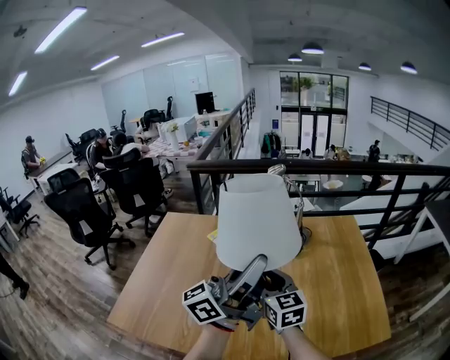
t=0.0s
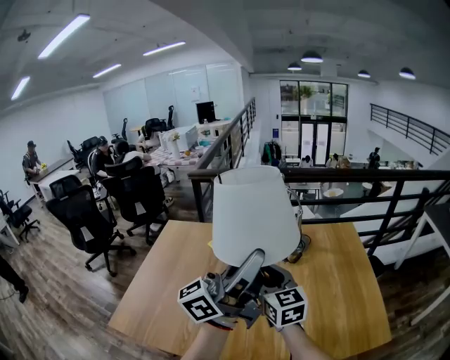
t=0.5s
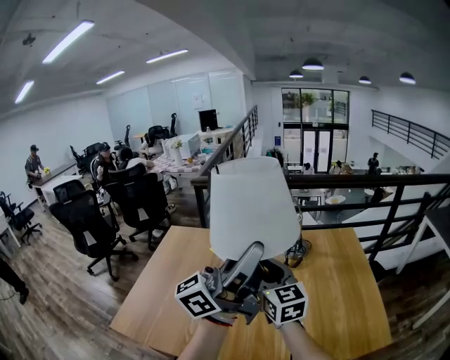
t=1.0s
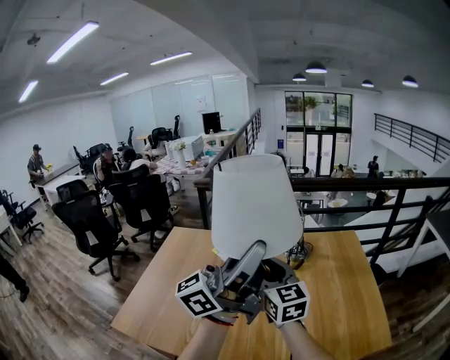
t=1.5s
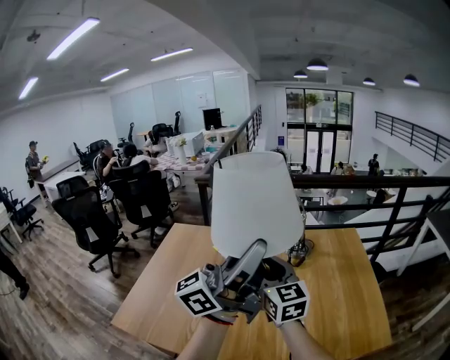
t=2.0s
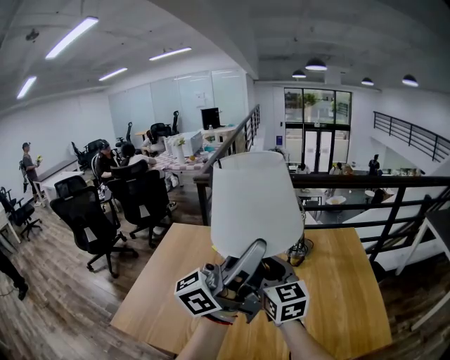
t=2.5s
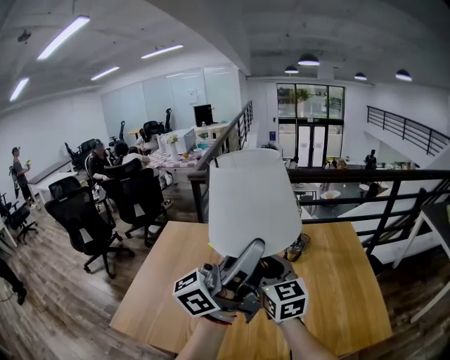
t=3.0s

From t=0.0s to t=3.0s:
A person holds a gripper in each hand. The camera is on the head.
From t=0.0s to t=1.5s: Both grippers travel together upward, roughly 10 cm.
From t=1.5s to t=3.0s: Neither gripper changes place.

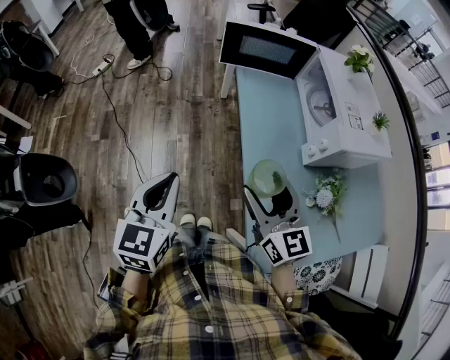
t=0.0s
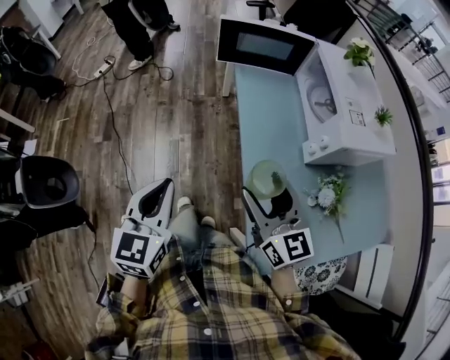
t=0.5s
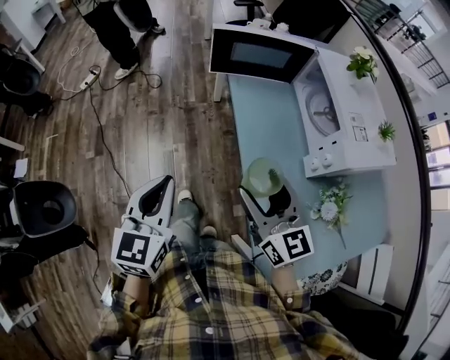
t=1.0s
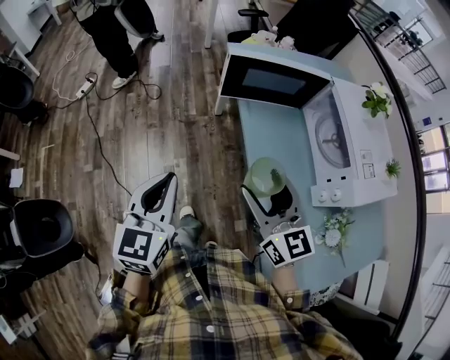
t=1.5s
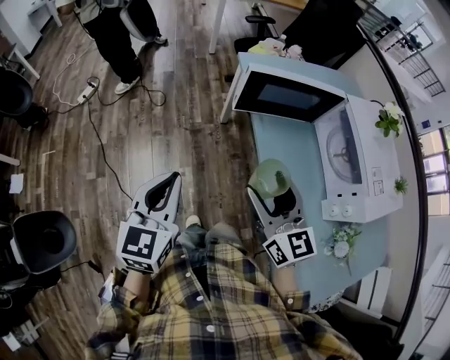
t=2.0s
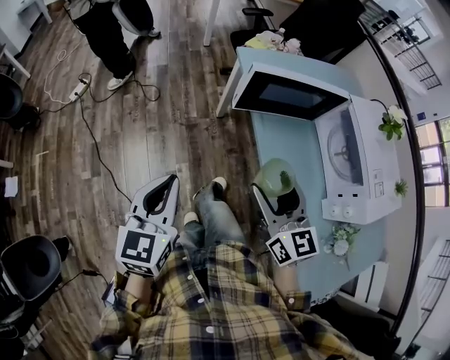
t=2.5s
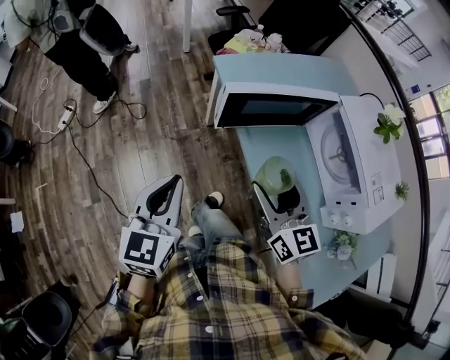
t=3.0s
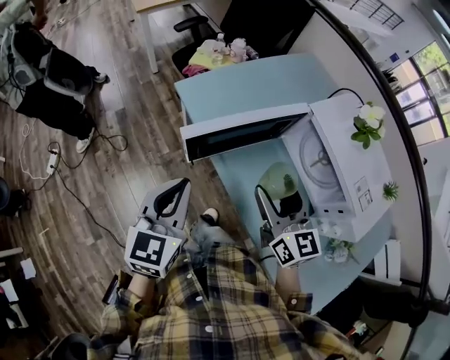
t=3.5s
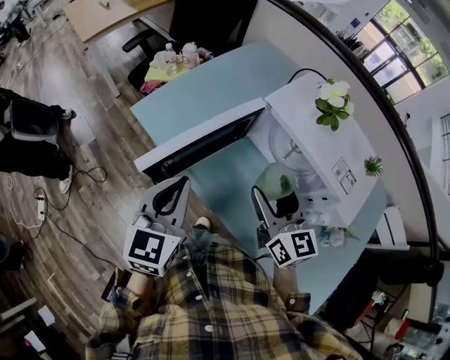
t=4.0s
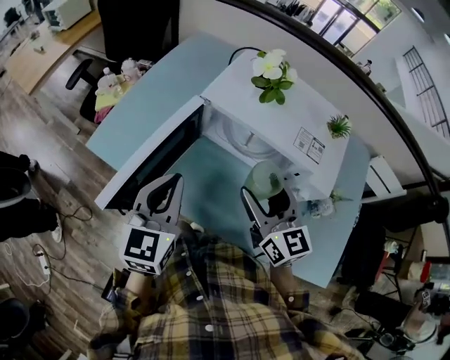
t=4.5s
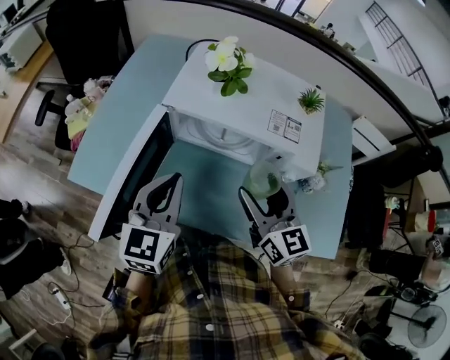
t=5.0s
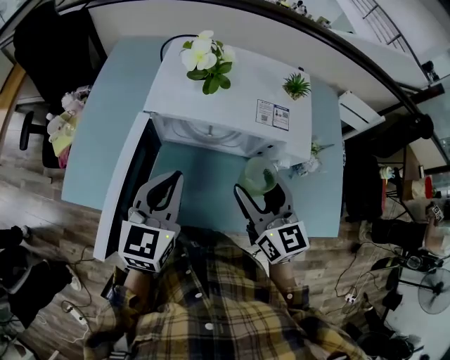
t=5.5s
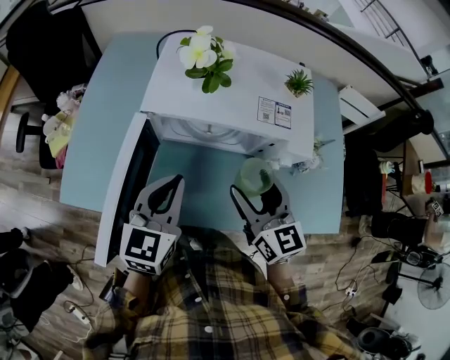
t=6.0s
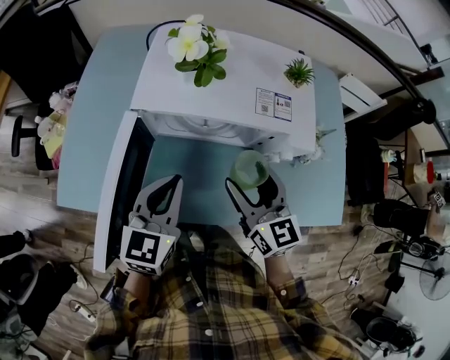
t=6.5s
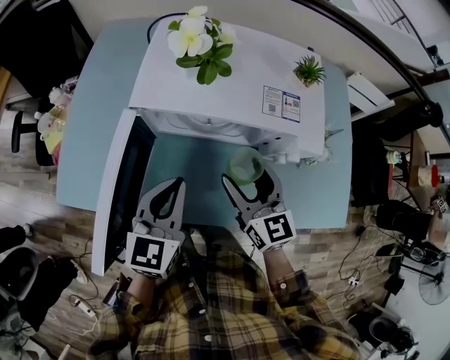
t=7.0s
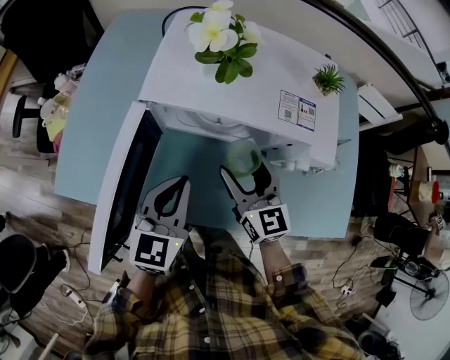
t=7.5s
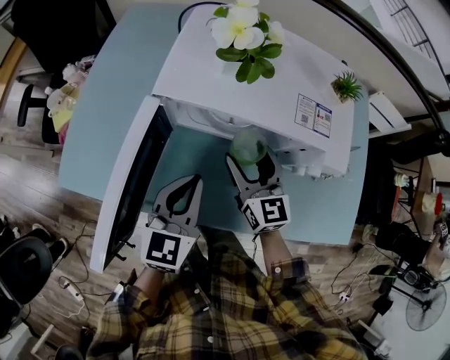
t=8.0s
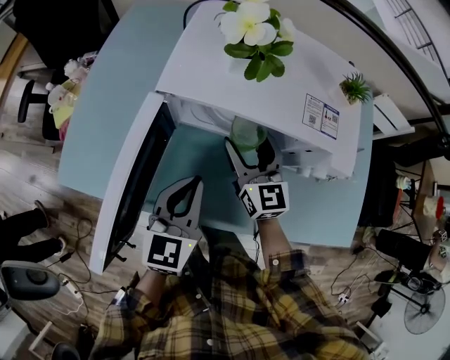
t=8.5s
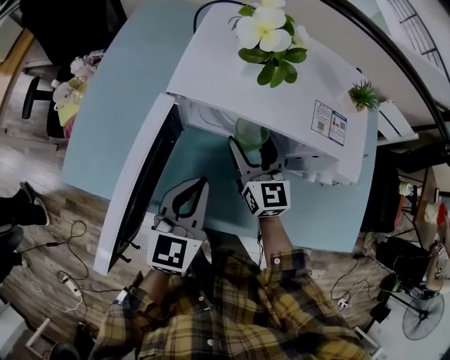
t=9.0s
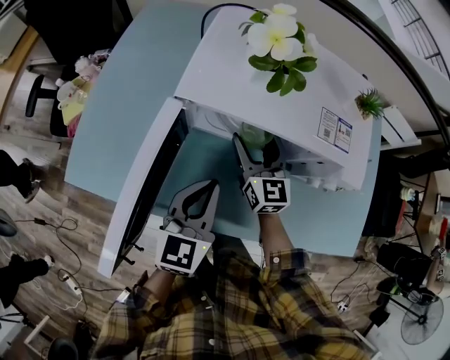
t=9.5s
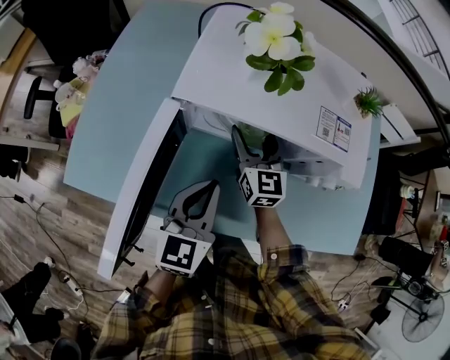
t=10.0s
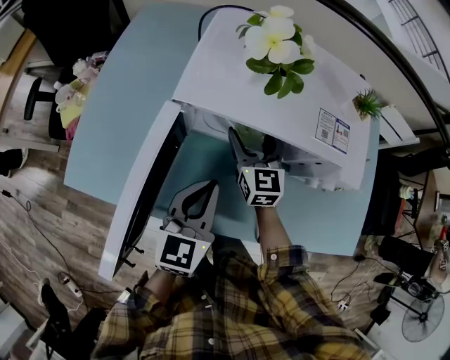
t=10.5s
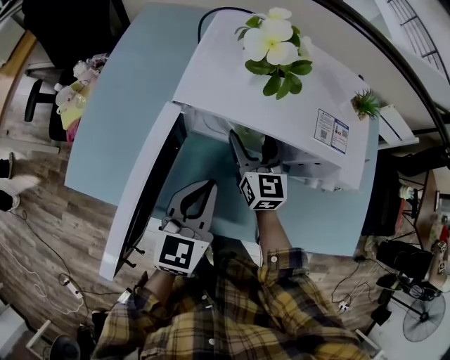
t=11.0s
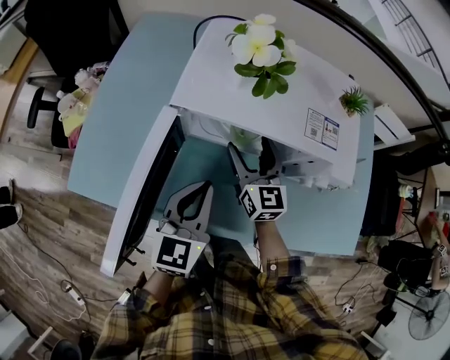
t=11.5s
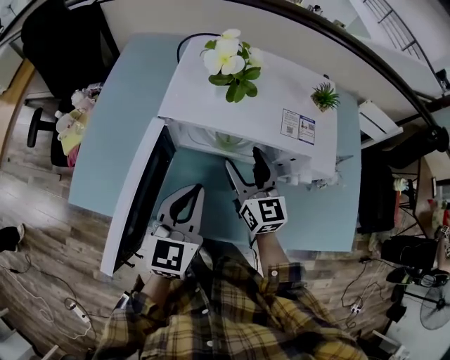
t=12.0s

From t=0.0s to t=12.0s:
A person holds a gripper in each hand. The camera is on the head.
From t=0.0s to t=2.0s: The left gripper goes some 25 cm forward, while the right gripper travels forward and to the left by approximately 25 cm.
From t=2.0s to t=4.0s: The right gripper ends up some 25 cm from where it was, and swivels some 40 degrees, while the left gripper shifts by roughly 35 cm, and rotates about 40 degrees.
From t=4.0s to t=6.0s: The right gripper changes place by approximately 10 cm, and swivels about 30 degrees; the left gripper changes place by roughly 20 cm, and swivels about 40 degrees.
From t=6.0s to t=8.0s: The left gripper shifts roughly 5 cm downward, while the right gripper is displaced downward and forward by roughly 15 cm.
From t=8.0s to t=10.0s: The right gripper moves forward, approximately 10 cm.
From t=10.0s to t=12.0s: The right gripper shifts some 10 cm backward and upward.

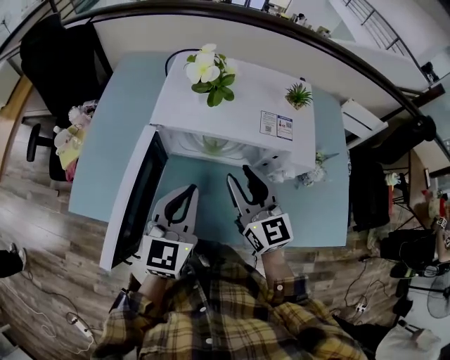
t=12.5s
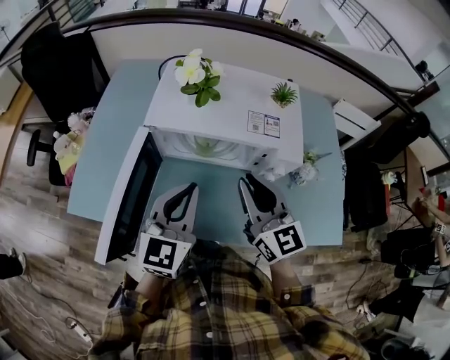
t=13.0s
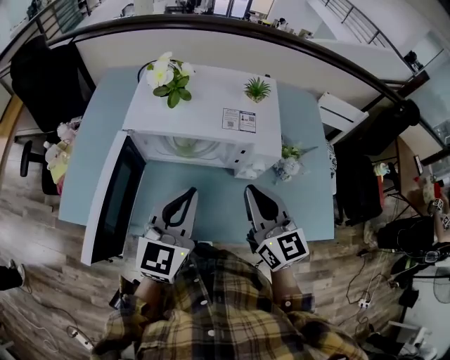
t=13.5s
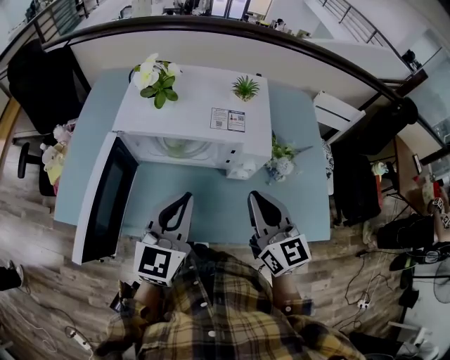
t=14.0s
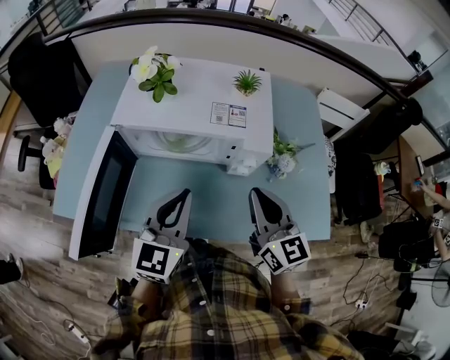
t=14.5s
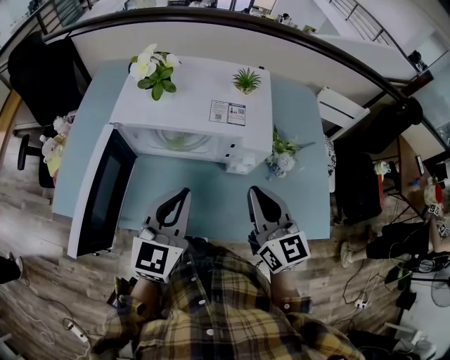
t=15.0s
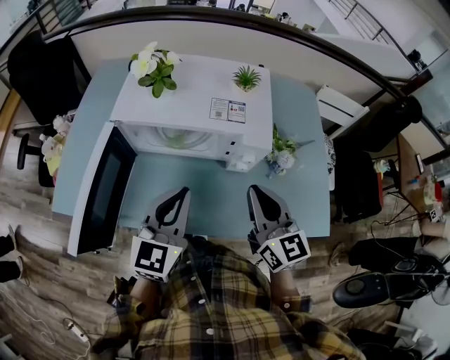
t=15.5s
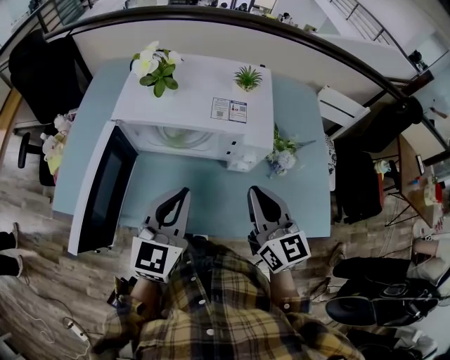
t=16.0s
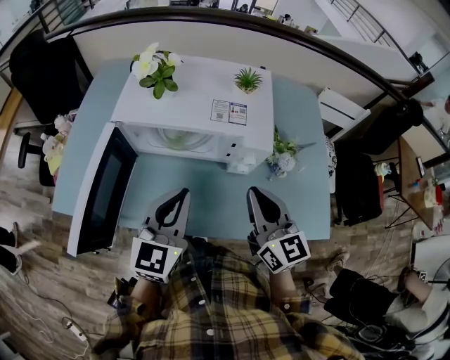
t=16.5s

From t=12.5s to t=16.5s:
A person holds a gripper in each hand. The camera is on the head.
From t=12.5s to t=14.5s: The left gripper is displaced to the right by some 10 cm, while the right gripper shifts about 15 cm to the right and backward, and closes up.
From t=14.5s to t=16.5s: Both grippers stay about where they are.

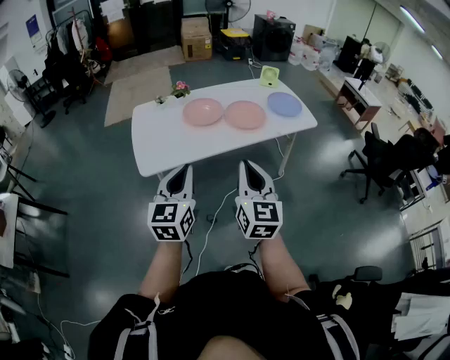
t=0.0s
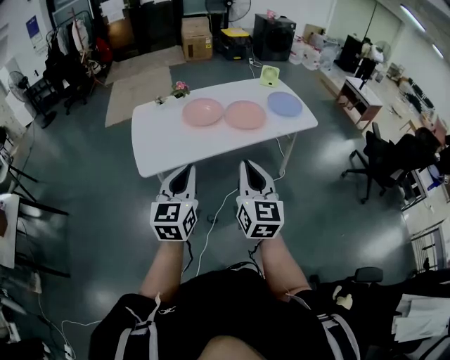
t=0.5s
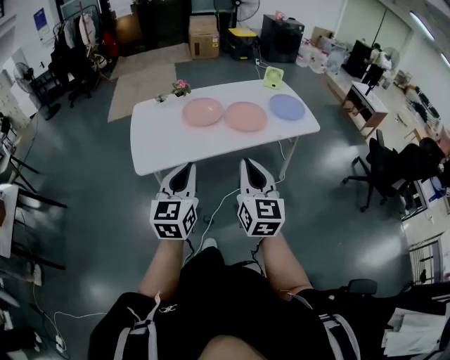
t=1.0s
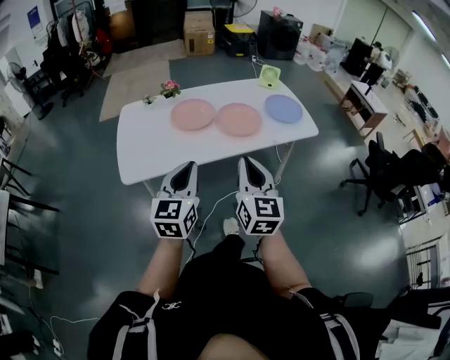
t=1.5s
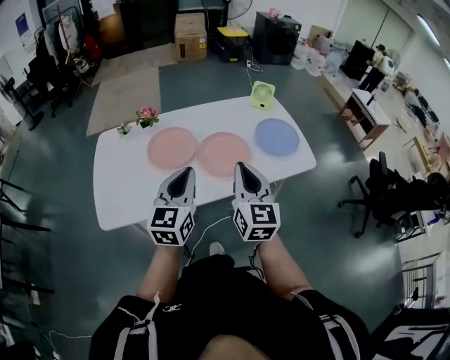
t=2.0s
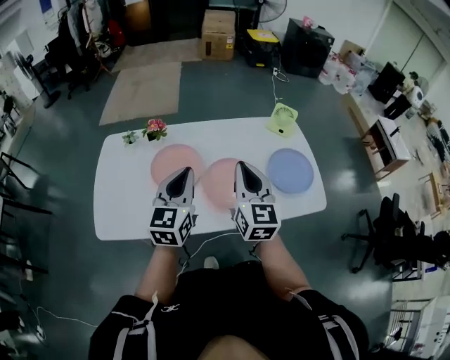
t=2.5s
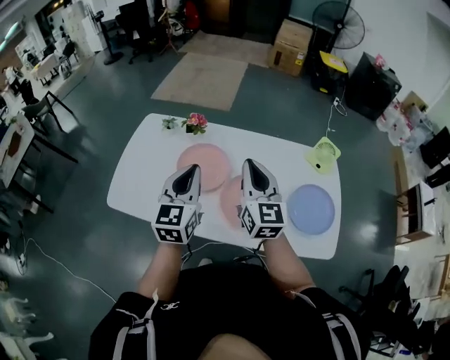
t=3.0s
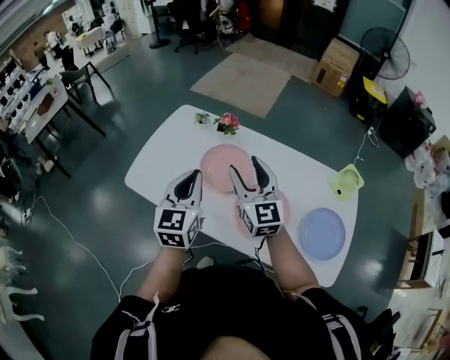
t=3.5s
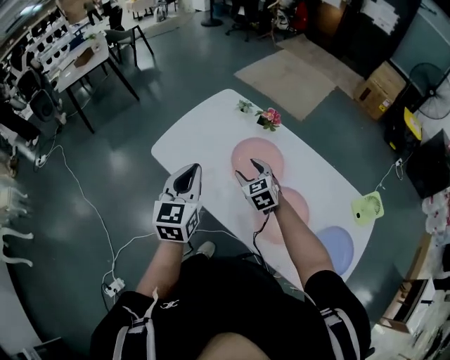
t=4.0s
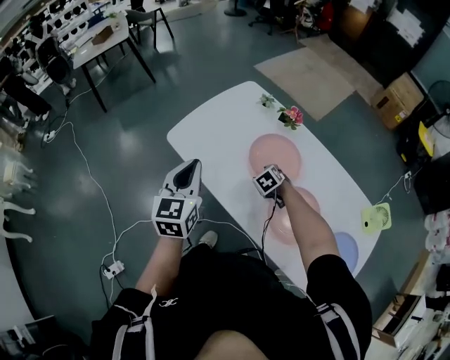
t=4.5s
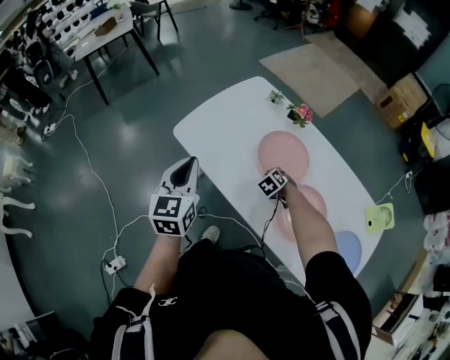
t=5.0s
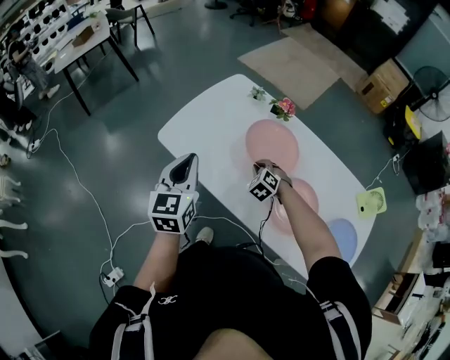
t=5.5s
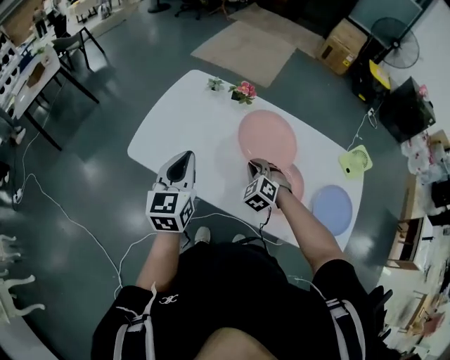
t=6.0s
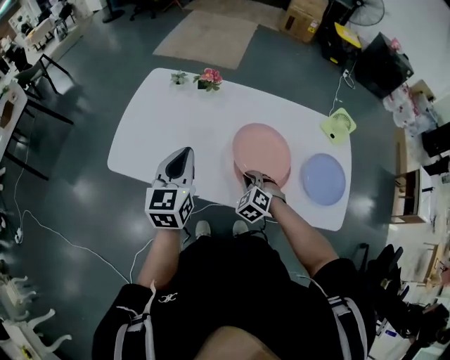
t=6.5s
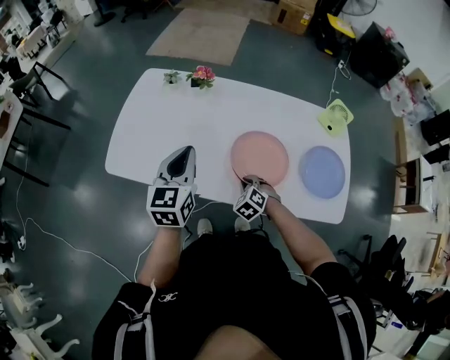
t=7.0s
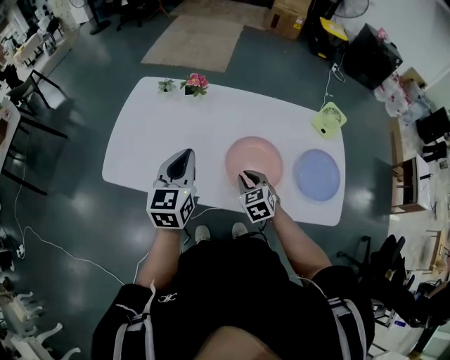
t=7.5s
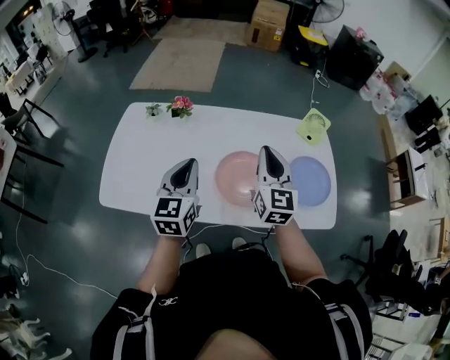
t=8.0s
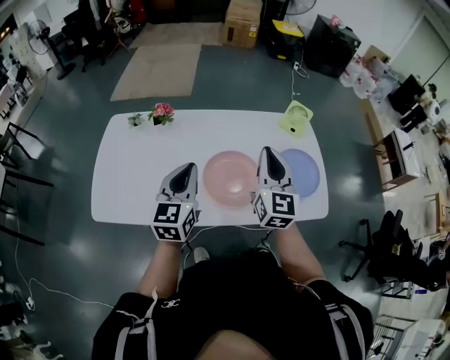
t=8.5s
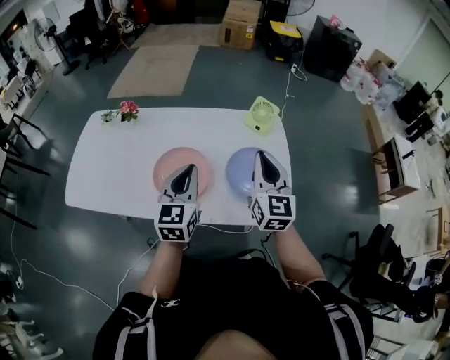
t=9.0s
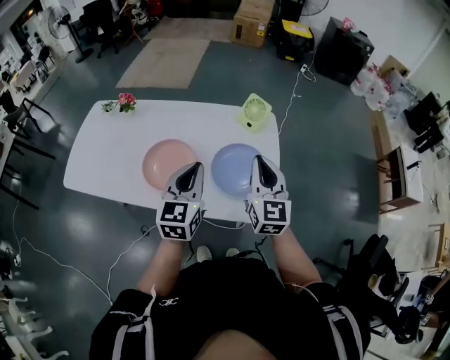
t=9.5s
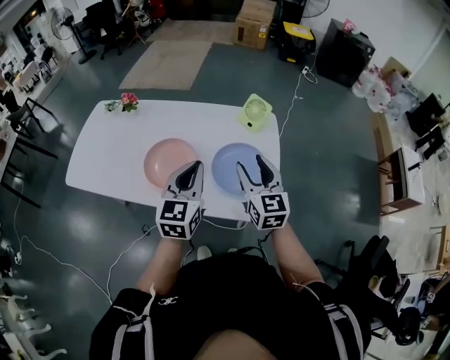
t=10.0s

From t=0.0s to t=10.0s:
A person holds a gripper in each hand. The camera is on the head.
From t=0.0s to t=2.0s: Both grippers are carried forward, about 50 cm.
From t=2.0s to t=4.0s: The left gripper ends up roughly 15 cm from where it was, and rotates about 60 degrees. Meanwhile the right gripper changes place by roughly 40 cm, tips its fingers downward by some 30 degrees, and opens its fingers.
From t=4.0s to t=6.0s: The right gripper goes downward and returns, approximately 15 cm each way, swivels some 30 degrees, and closes up.
From t=6.0s to t=8.0s: The left gripper heads to the right, covering about 15 cm, and rotates roughly 20 degrees. The right gripper travels upward and to the right by about 30 cm, and angles its fingers upward, by about 40 degrees.
From t=8.0s to t=10.0s: The pair of grippers is taken to the right, roughly 40 cm. The right gripper opens.
